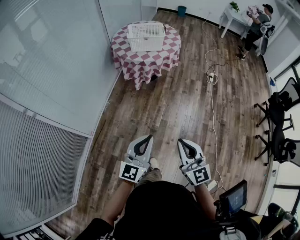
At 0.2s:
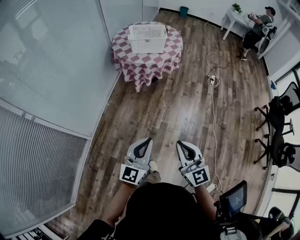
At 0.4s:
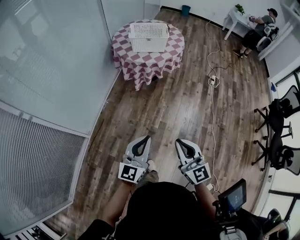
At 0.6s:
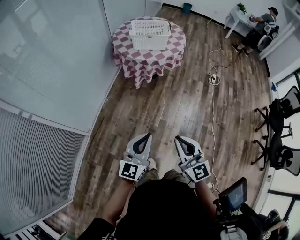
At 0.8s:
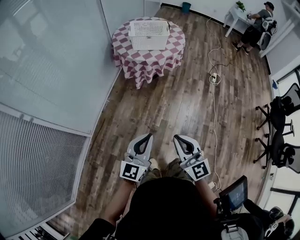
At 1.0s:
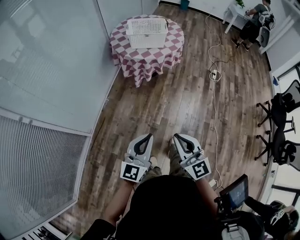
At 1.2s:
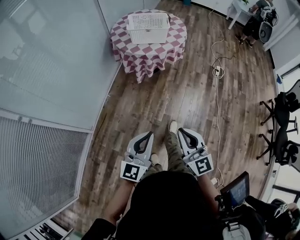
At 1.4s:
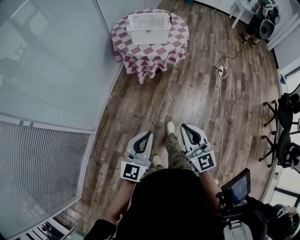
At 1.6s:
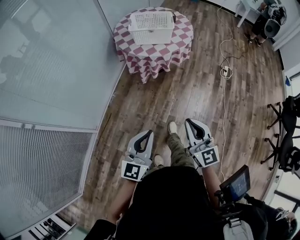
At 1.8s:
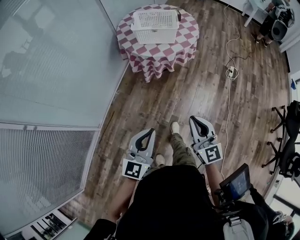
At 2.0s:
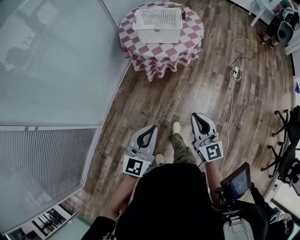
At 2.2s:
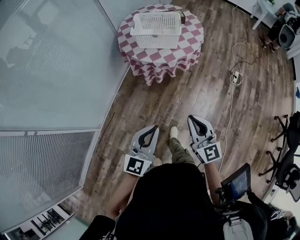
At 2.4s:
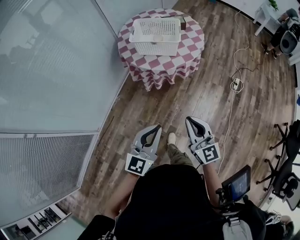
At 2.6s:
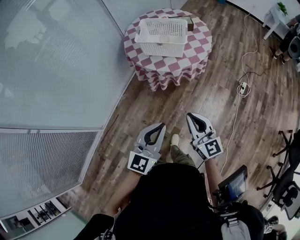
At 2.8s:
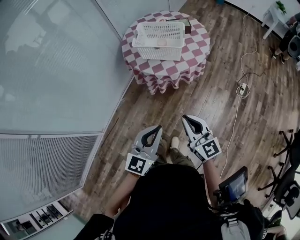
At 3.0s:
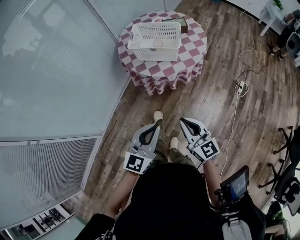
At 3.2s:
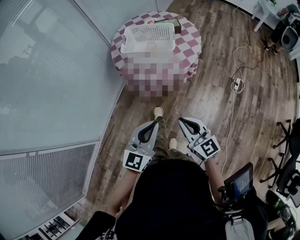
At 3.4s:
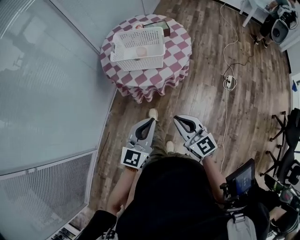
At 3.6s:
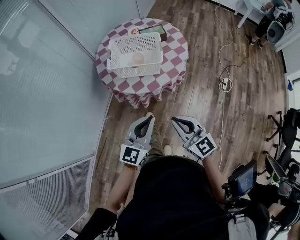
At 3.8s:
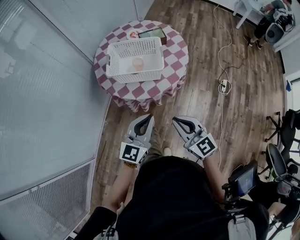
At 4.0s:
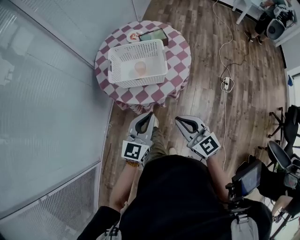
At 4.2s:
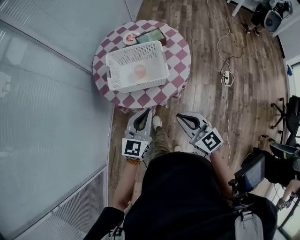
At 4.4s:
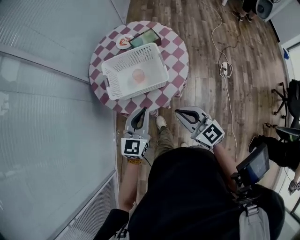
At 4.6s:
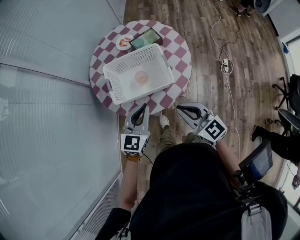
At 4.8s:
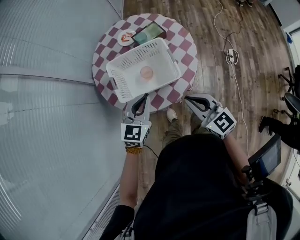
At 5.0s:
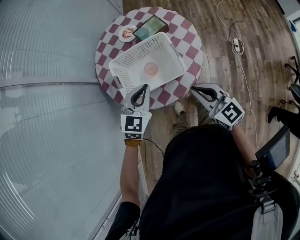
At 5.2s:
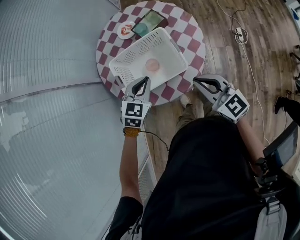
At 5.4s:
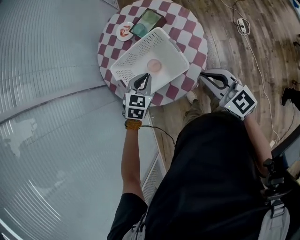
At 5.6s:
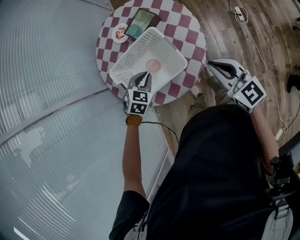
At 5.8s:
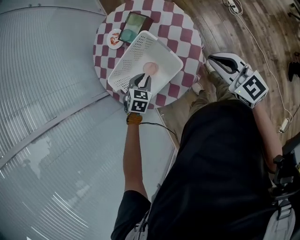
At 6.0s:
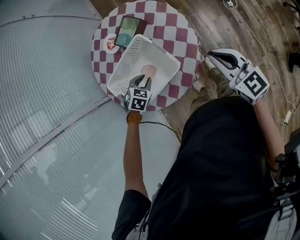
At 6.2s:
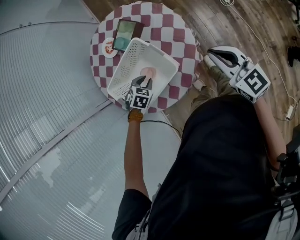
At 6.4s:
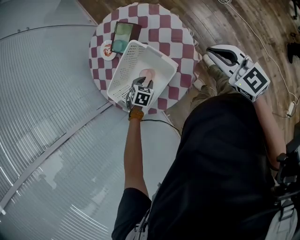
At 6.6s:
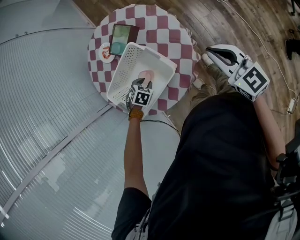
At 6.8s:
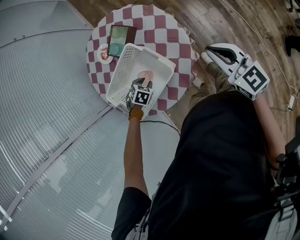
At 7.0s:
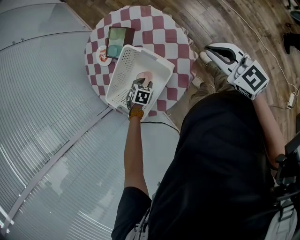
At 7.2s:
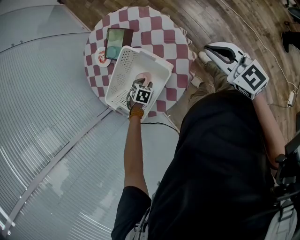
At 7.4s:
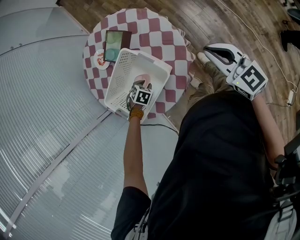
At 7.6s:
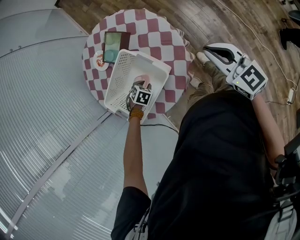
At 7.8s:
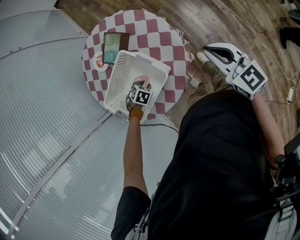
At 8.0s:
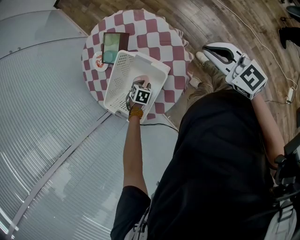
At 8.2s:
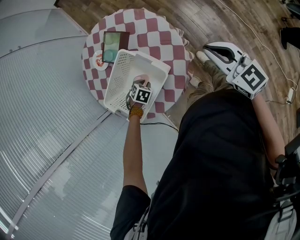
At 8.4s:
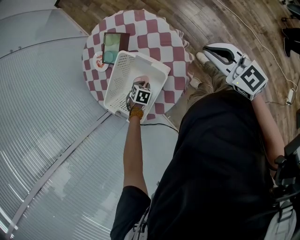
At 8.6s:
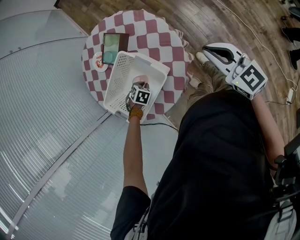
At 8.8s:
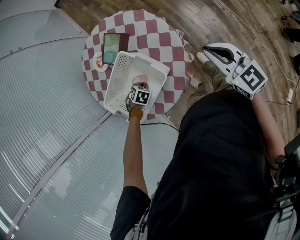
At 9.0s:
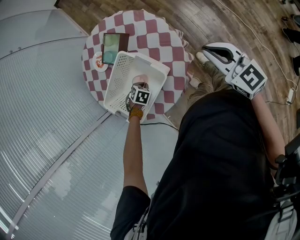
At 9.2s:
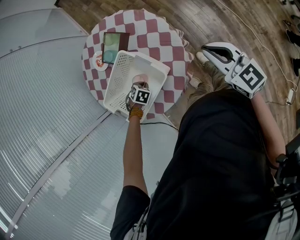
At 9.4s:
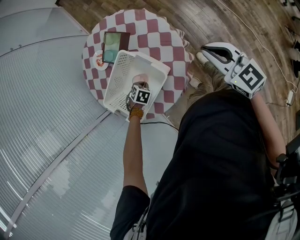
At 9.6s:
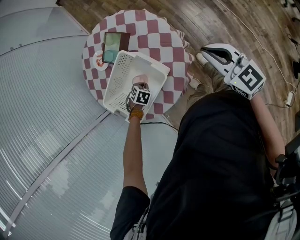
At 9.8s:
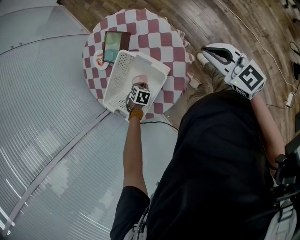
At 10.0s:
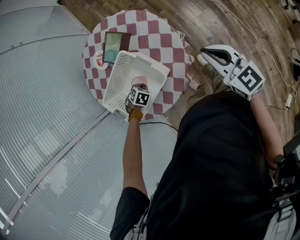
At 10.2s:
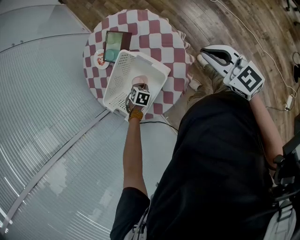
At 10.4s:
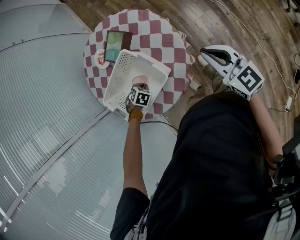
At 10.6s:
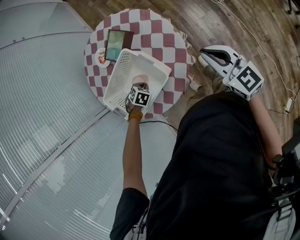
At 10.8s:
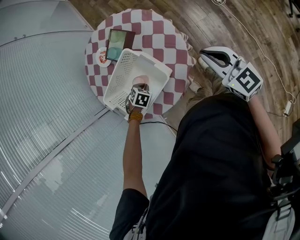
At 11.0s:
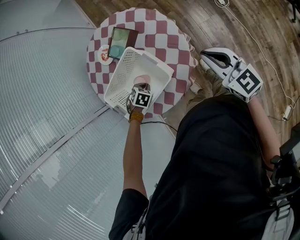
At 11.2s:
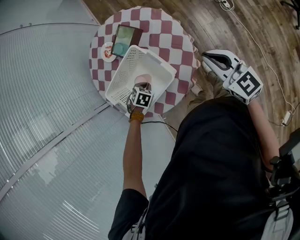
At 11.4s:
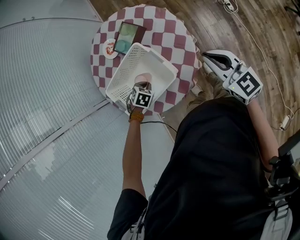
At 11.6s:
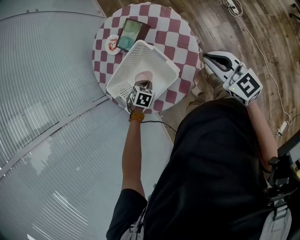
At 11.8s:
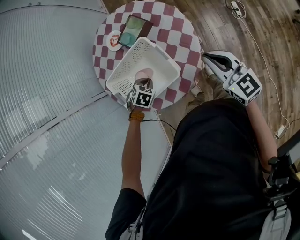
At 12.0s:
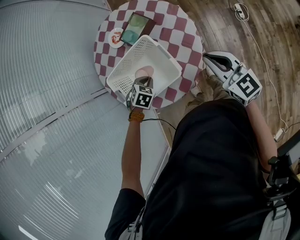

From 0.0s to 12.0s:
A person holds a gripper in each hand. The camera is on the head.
From 0.0s to 1.6s: Both grippers travel together forward, roughly 20 cm.
From 1.6s to 3.0s: The right gripper shifts about 25 cm forward, and rotates about 20 degrees. Meanwhile the left gripper shifts about 30 cm forward and to the right.
From 3.0s to 4.4s: The two grippers go roughly 30 cm forward.
From 4.4s to 6.0s: The right gripper shifts some 20 cm forward and to the right, and turns by roughly 30 degrees; the left gripper travels forward and downward by about 30 cm, and tips its fingers downward by approximately 60 degrees.
From 6.0s to 7.6s: The right gripper ends up roughly 5 cm from where it was; the left gripper is displaced downward by roughly 10 cm, and turns by approximately 20 degrees.
From 7.6s to 9.0s: The left gripper closes.
From 9.0s to 10.4s: Neither gripper changes place.
From 10.4s to 12.0s: The left gripper moves upward, about 10 cm. Meanwhile the right gripper moves approximately 5 cm.

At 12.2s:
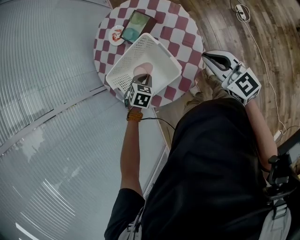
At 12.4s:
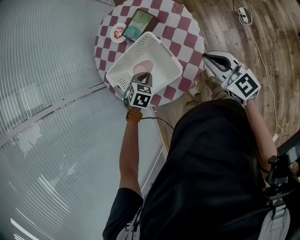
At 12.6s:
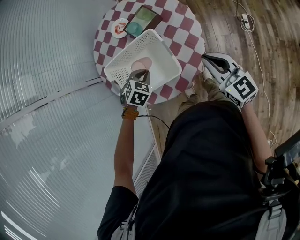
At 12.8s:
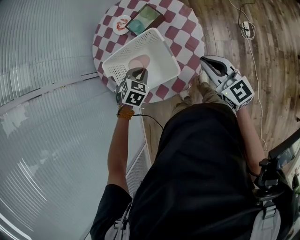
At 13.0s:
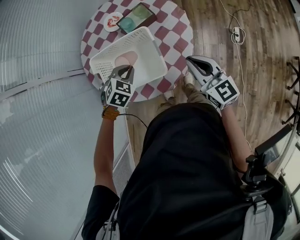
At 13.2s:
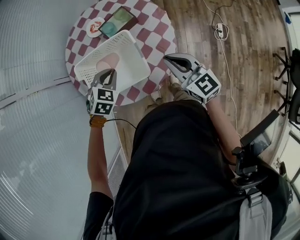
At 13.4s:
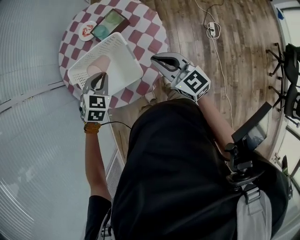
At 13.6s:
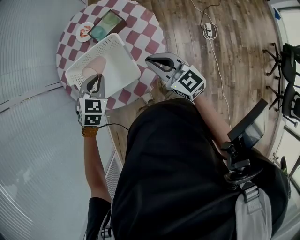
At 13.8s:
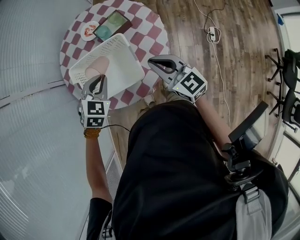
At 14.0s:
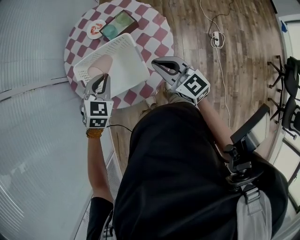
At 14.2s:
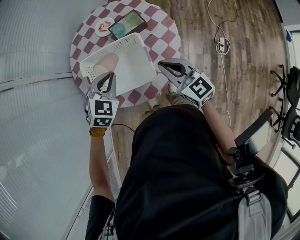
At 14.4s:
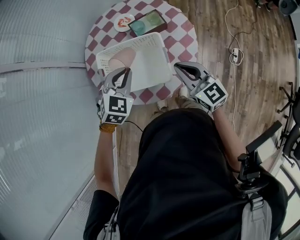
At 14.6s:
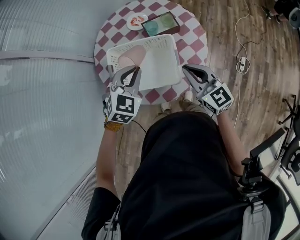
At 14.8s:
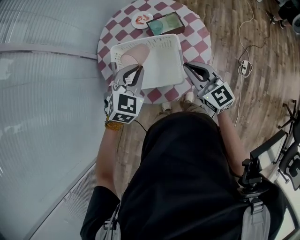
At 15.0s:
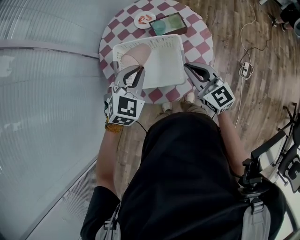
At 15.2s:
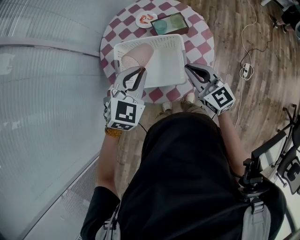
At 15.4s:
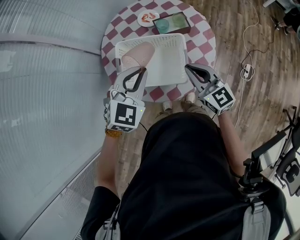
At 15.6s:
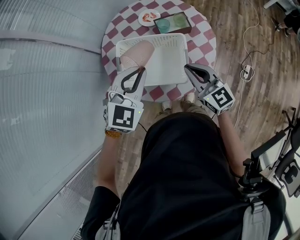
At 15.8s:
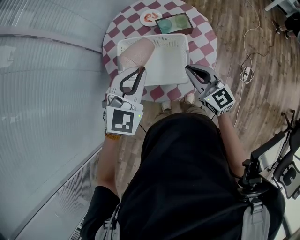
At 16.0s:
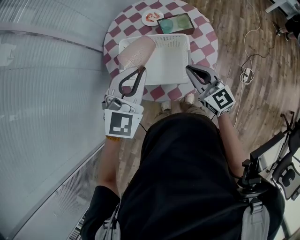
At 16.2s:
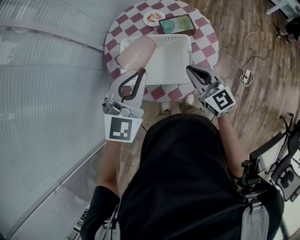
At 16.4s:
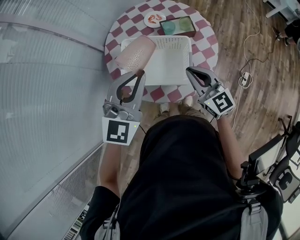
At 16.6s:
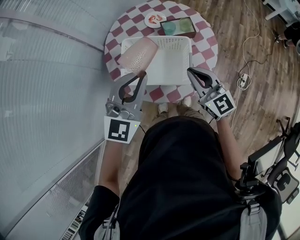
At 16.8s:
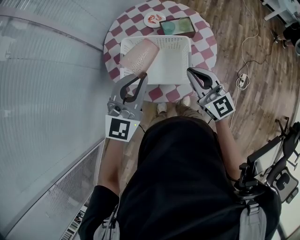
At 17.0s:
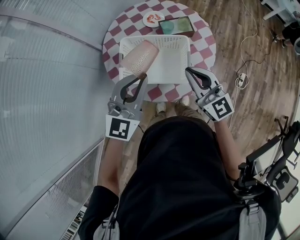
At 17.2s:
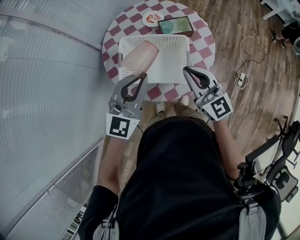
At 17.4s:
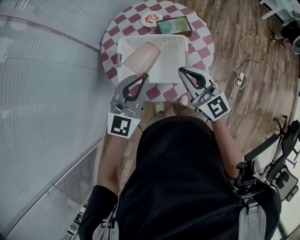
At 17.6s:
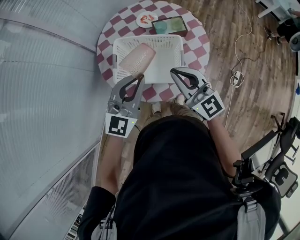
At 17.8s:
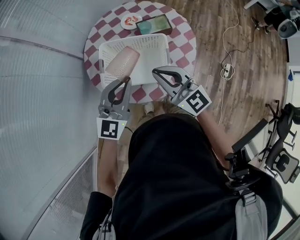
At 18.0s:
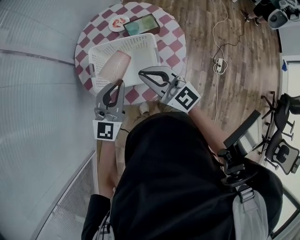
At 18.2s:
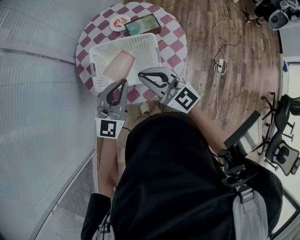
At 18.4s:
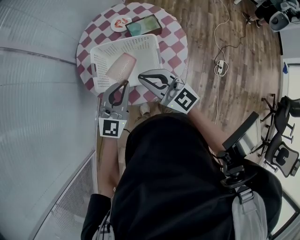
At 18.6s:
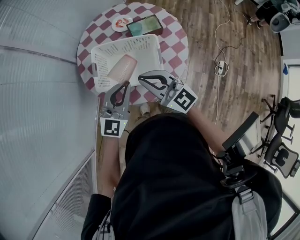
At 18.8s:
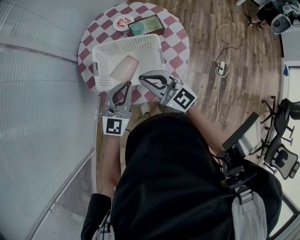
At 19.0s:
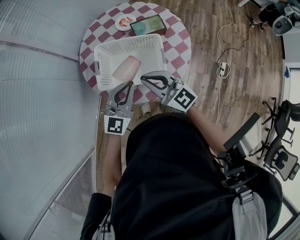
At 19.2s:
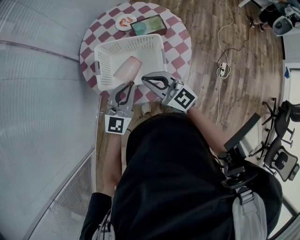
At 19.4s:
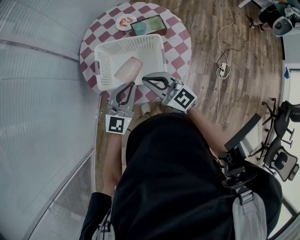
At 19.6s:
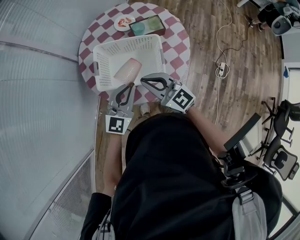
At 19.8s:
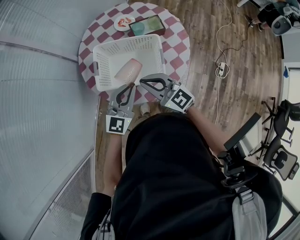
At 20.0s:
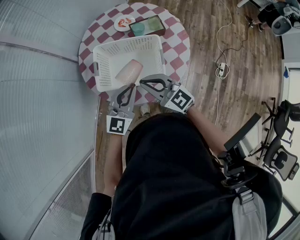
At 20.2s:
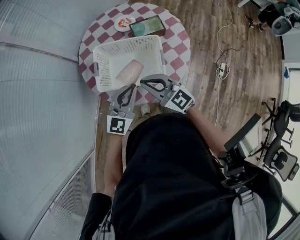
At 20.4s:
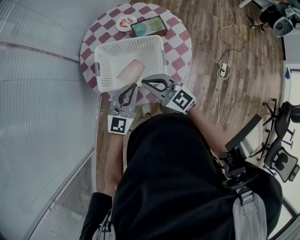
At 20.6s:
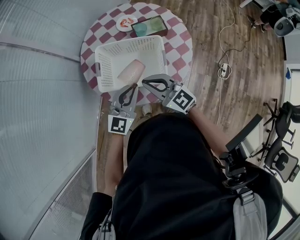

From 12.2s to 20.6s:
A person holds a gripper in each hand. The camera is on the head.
From 12.2s to 13.6s: The left gripper is displaced upward by some 10 cm, and swivels some 20 degrees, while the right gripper is displaced to the left by some 5 cm.
From 13.6s to 15.0s: The right gripper travels to the left by some 5 cm; the left gripper shifts some 10 cm upward.
From 15.0s to 16.4s: The left gripper heads upward, covering about 10 cm, and swivels some 30 degrees.
From 16.4s to 17.8s: The right gripper moves roughly 5 cm; the left gripper heads downward, covering some 5 cm.
From 17.8s to 19.2s: The right gripper ends up about 5 cm from where it was, while the left gripper shifts approximately 5 cm downward.
From 19.2s to 20.6s: The grippers make only small movements.

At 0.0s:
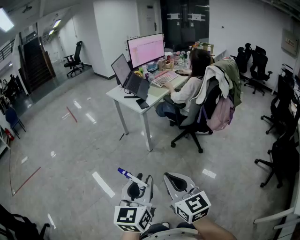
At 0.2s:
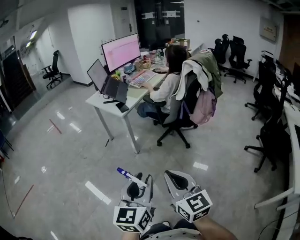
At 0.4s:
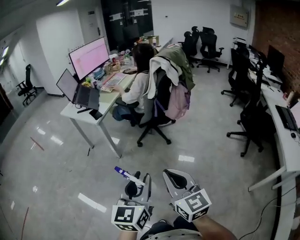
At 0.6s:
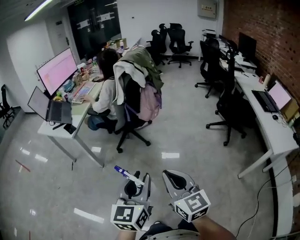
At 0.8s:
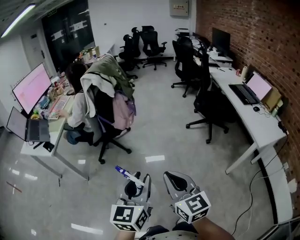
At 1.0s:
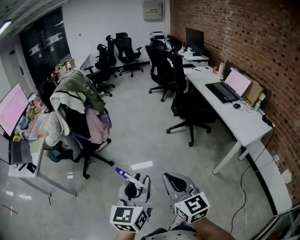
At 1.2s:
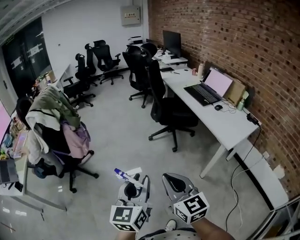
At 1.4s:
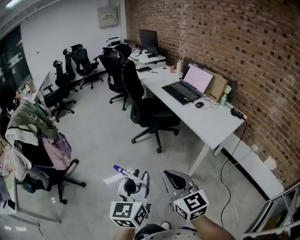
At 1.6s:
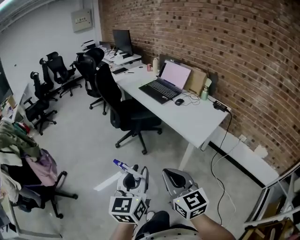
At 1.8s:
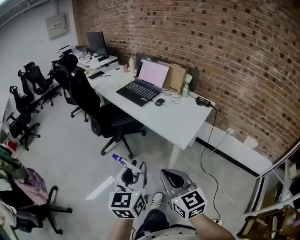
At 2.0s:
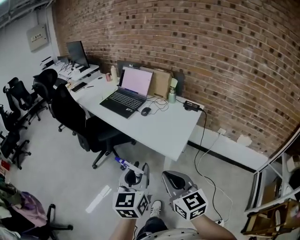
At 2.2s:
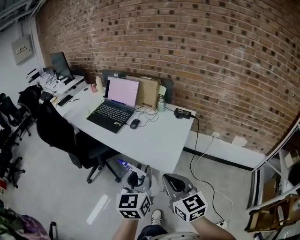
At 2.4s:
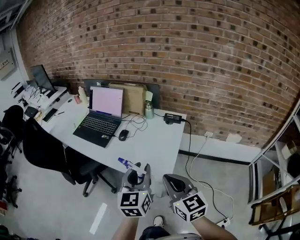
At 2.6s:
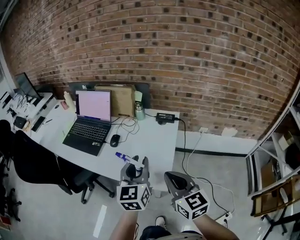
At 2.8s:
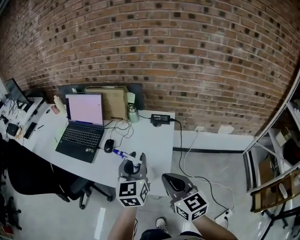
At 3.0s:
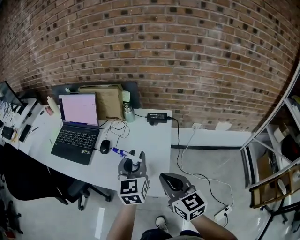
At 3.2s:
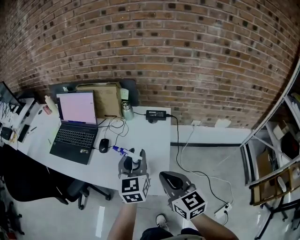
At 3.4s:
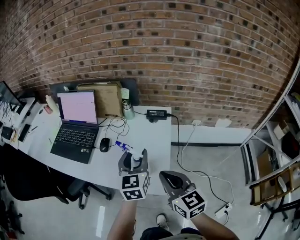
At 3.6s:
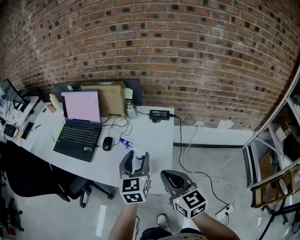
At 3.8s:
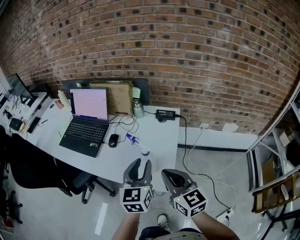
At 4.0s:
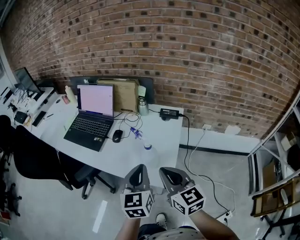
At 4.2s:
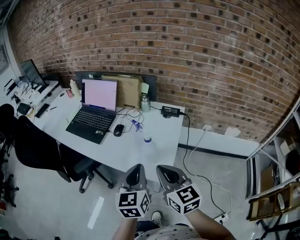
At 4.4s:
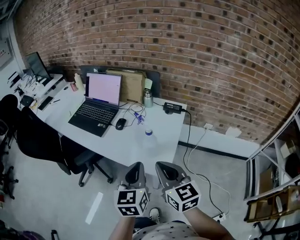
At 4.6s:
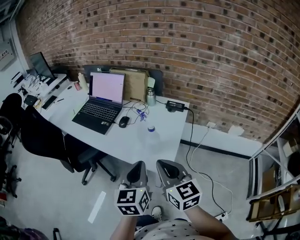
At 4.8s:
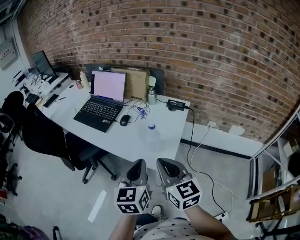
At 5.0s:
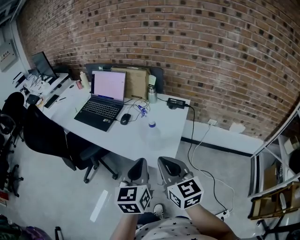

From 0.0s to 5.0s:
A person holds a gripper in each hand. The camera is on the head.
From 0.0s to 1.6s: The pair of grippers is taken about 80 cm. The left gripper turns by some 80 degrees, while the right gripper swivels about 80 degrees.
From 1.6s to 3.4s: The pair of grippers is taken roughly 50 cm. The right gripper swivels approximately 40 degrees. Meanwhile the left gripper swivels some 40 degrees.
From 3.4s to 5.0s: The left gripper heads backward, covering some 20 cm, and closes up, while the right gripper shifts about 10 cm backward and to the left.
